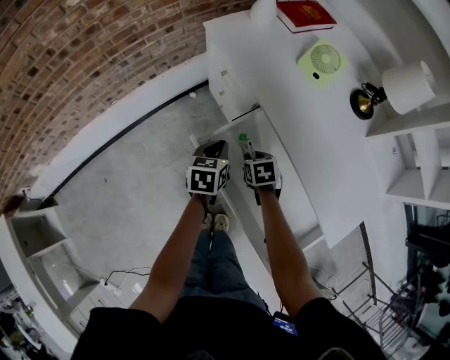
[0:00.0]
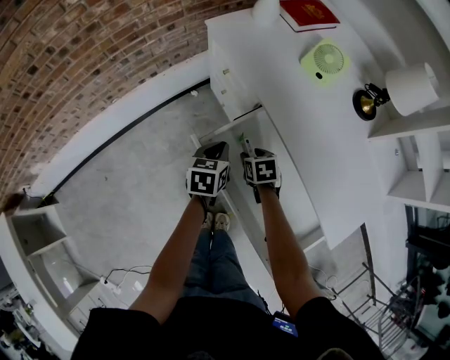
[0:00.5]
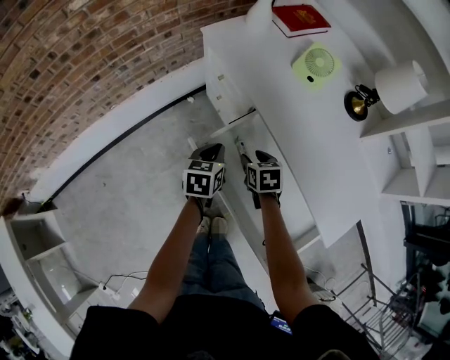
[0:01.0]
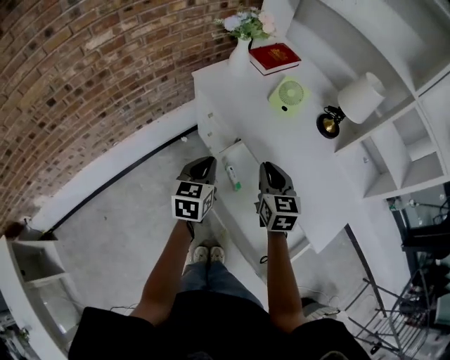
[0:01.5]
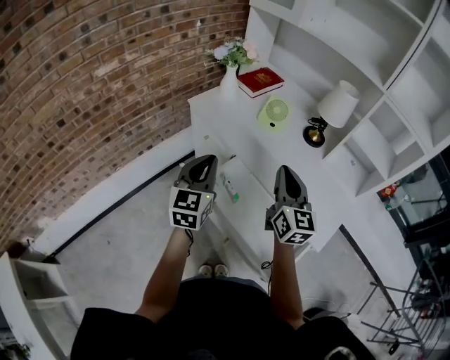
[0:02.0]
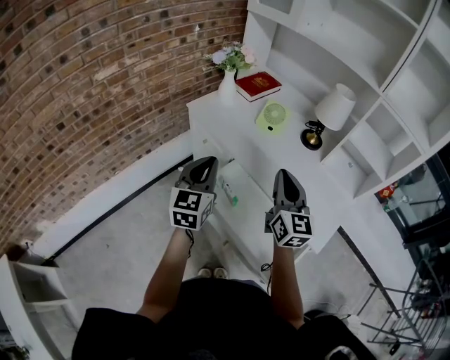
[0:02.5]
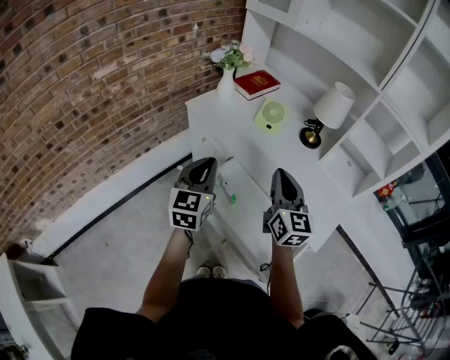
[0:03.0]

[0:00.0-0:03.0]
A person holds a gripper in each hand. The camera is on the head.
0:00.0 to 0:01.5: The right gripper goes some 25 cm upward, tilts its fingers some 40 degrees upward, and opens, then closes again, while the left gripper heads upward, covering approximately 15 cm.
0:01.5 to 0:03.0: The right gripper goes approximately 15 cm upward and backward, and changes its angle by some 20 degrees, while the left gripper is displaced upward by roughly 15 cm, and swivels some 20 degrees.

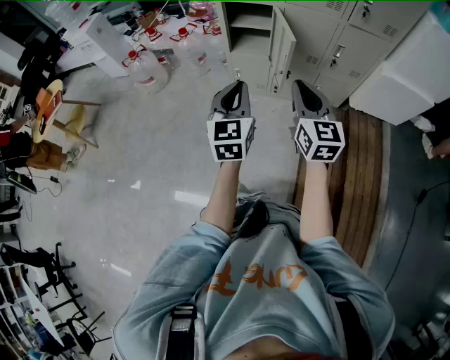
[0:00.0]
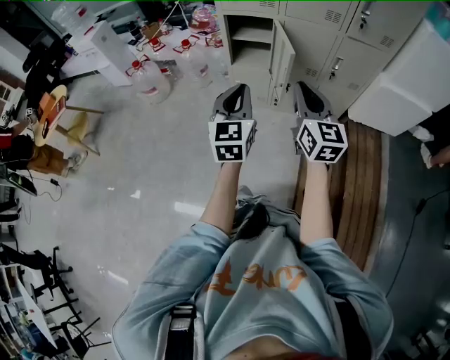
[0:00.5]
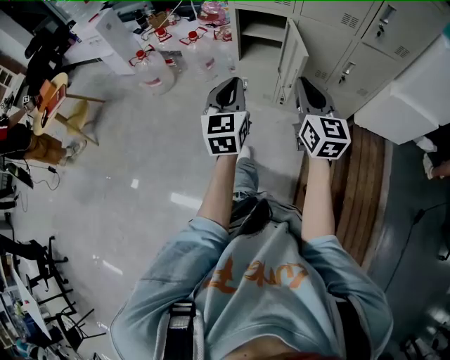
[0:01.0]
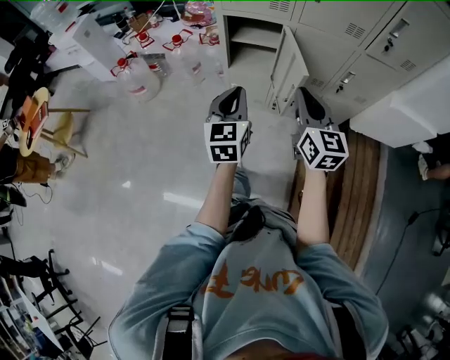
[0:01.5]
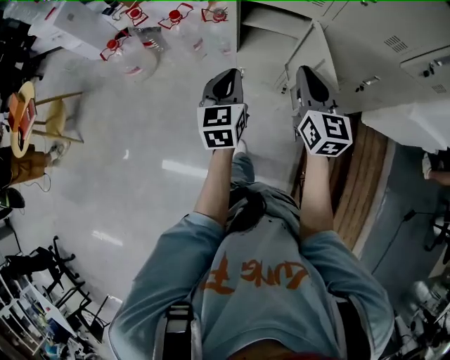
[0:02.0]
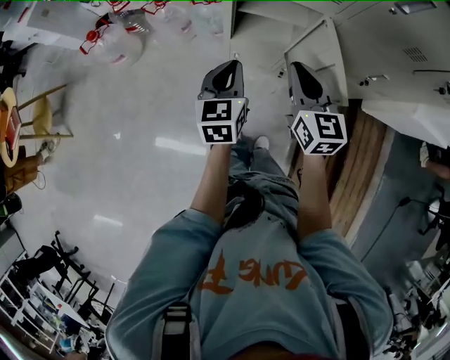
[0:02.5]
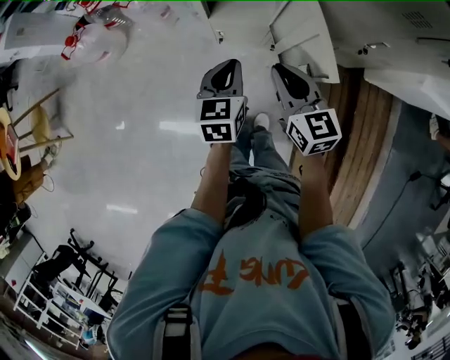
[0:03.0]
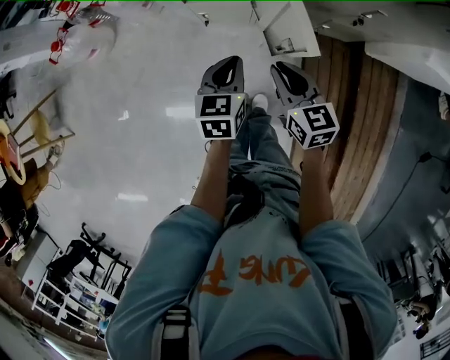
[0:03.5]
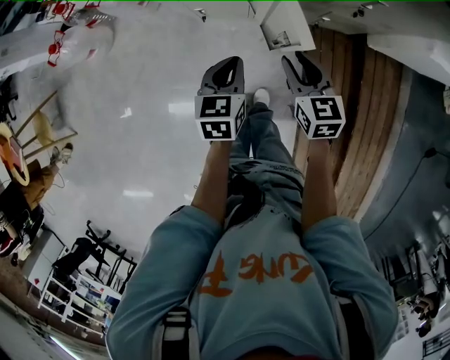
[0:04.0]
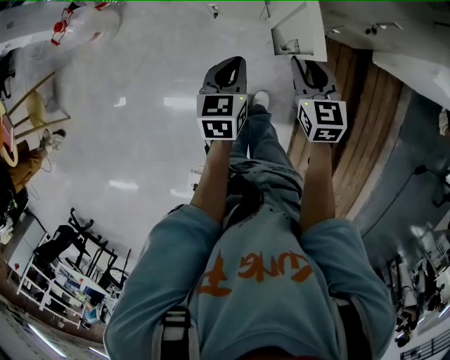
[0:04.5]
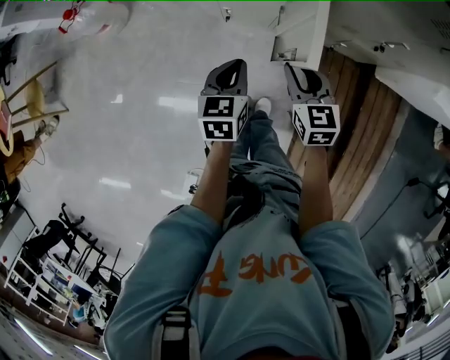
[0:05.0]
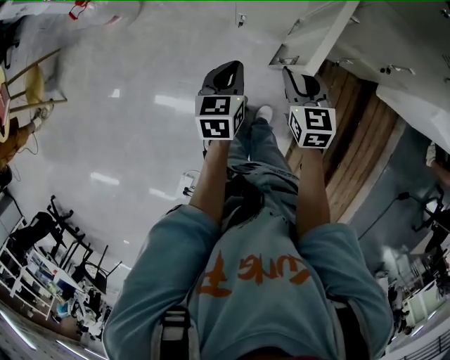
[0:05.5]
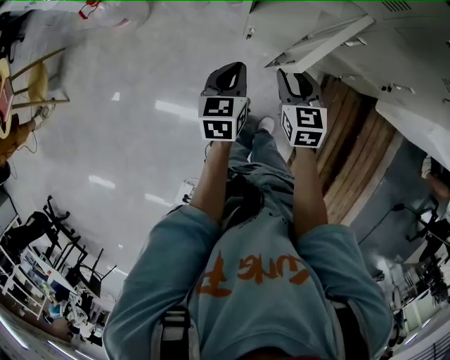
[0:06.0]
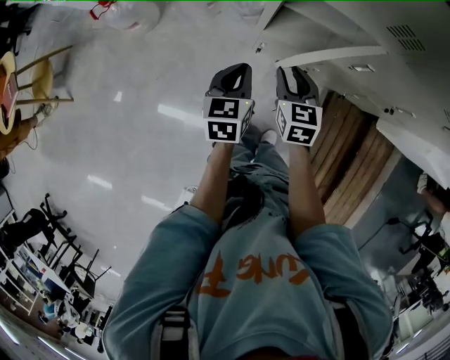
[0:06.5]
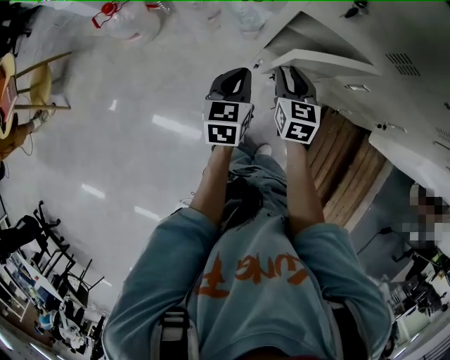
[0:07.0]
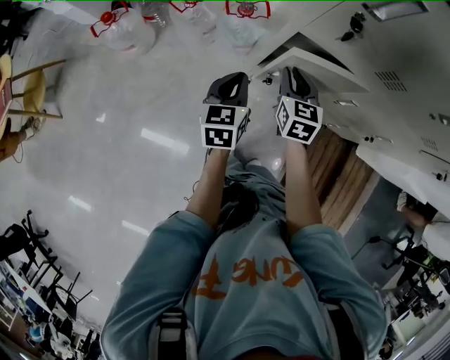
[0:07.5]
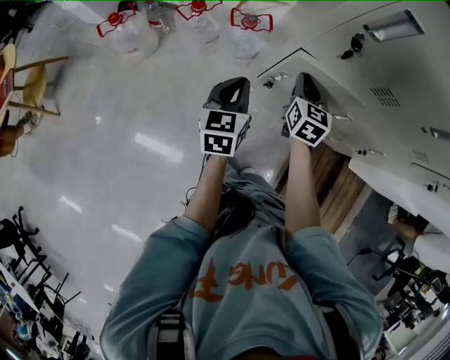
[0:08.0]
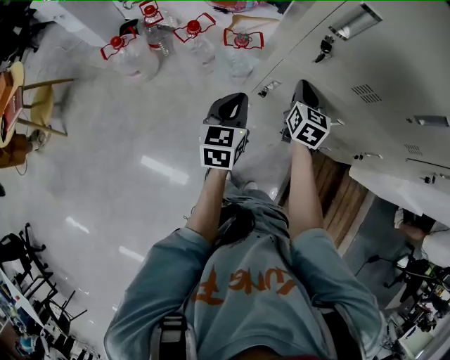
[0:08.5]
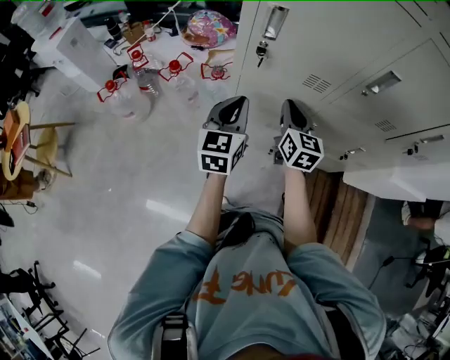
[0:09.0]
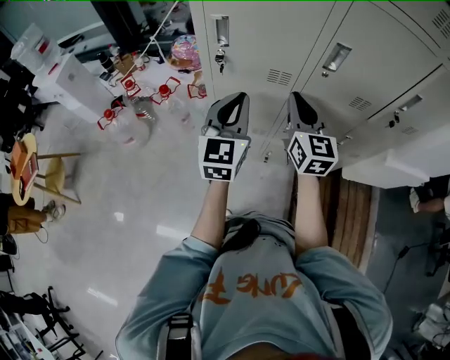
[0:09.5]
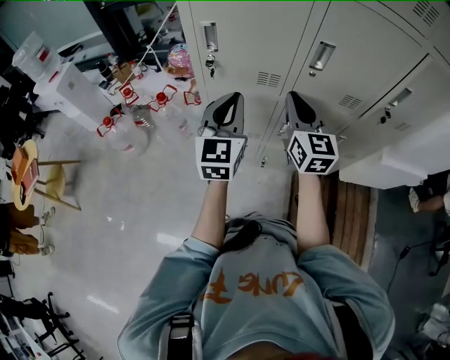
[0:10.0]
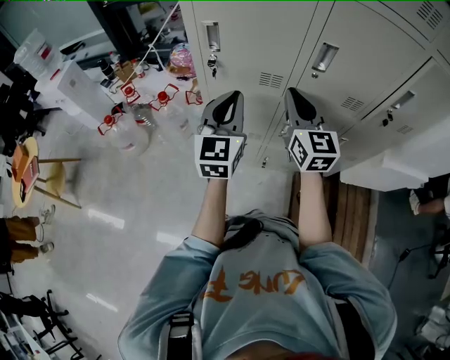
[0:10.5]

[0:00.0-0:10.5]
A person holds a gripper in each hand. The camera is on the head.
0:00.0 to 0:02.0: Both grippers travel together forward, roughly 30 cm.
0:02.0 to 0:04.0: The two grippers go about 25 cm downward and to the right. The left gripper changes its angle by roughly 30 degrees. The right gripper turns by roughly 20 degrees, and opens.
0:04.0 to 0:06.5: Both grippers move to the left and forward, roughly 25 cm.
0:06.5 to 0:08.5: The left gripper travels upward and forward by some 10 cm. Meanwhile the right gripper travels forward and upward by about 15 cm, and closes up.
0:08.5 to 0:10.5: The right gripper is displaced upward, to the right and backward by roughly 30 cm, and rotates about 30 degrees. The left gripper heads upward and to the right, covering about 30 cm, and changes its angle by roughly 30 degrees.

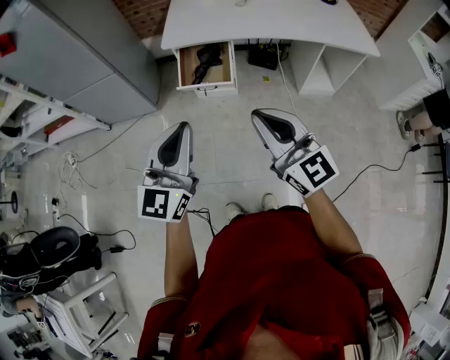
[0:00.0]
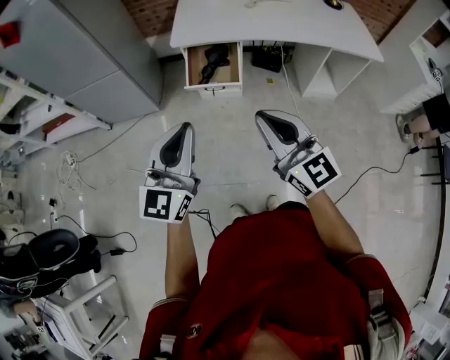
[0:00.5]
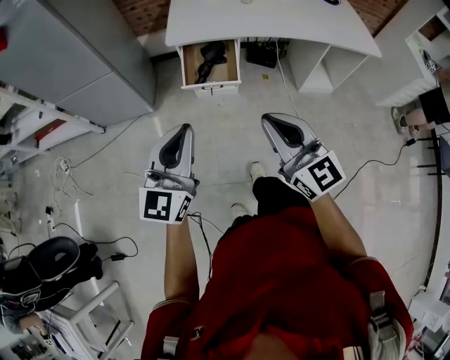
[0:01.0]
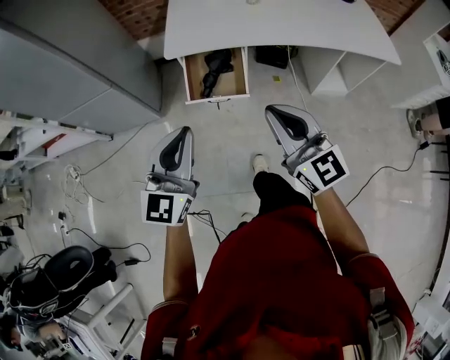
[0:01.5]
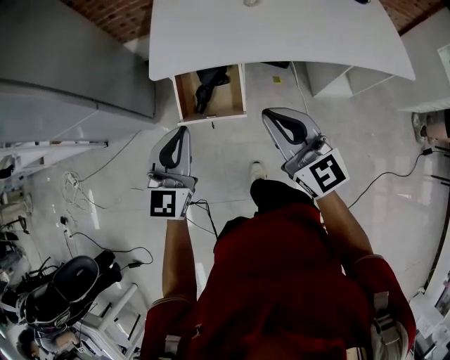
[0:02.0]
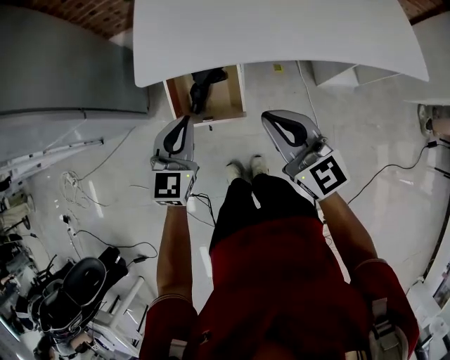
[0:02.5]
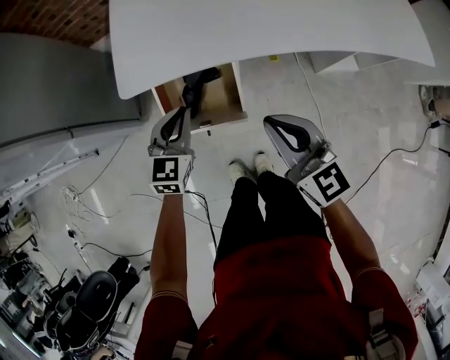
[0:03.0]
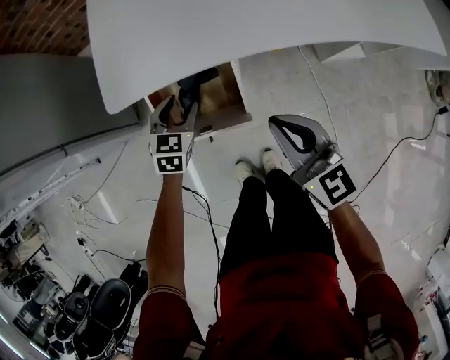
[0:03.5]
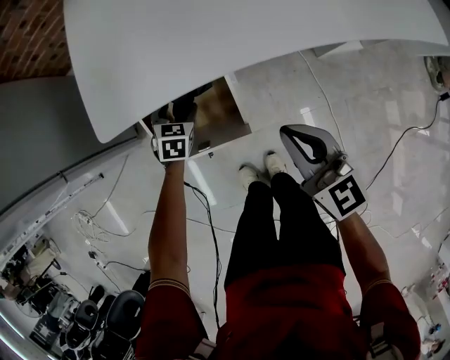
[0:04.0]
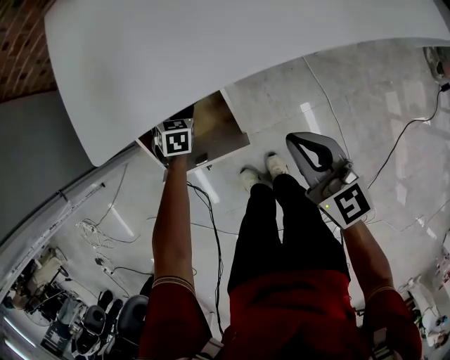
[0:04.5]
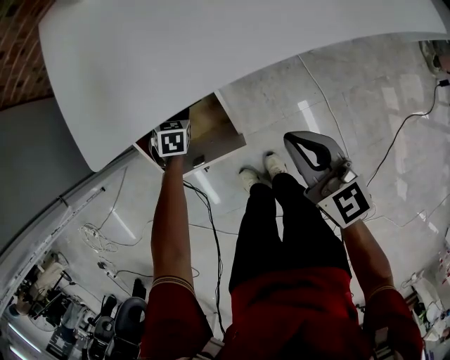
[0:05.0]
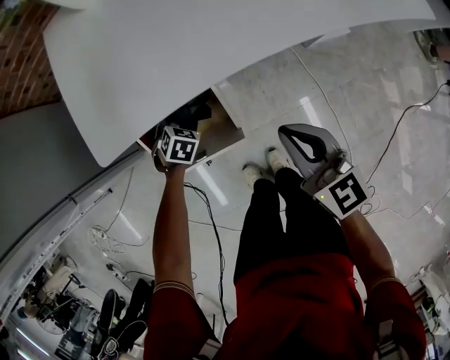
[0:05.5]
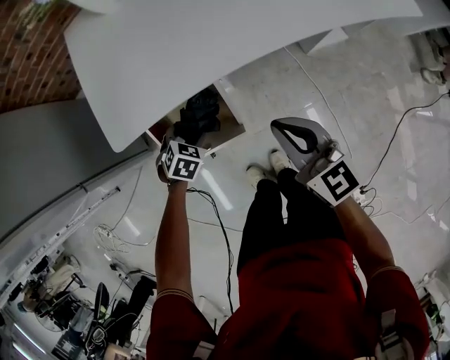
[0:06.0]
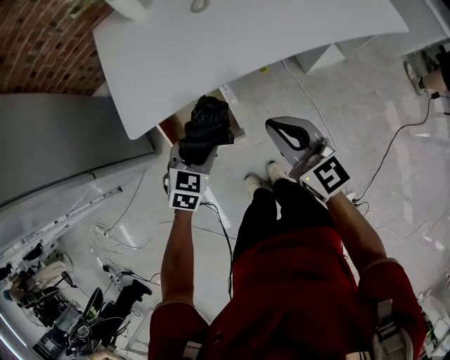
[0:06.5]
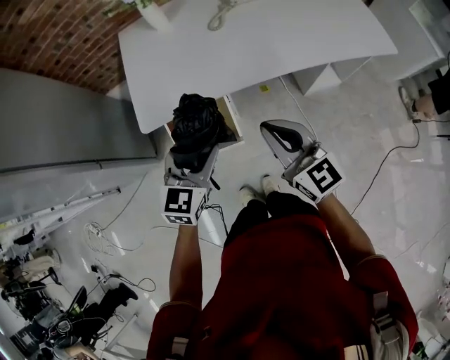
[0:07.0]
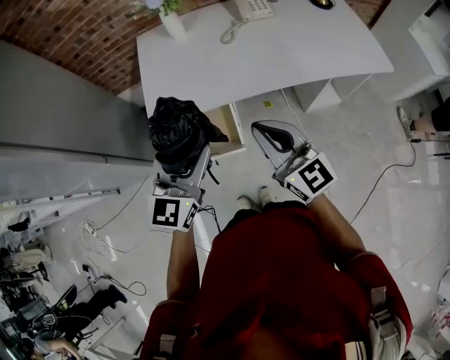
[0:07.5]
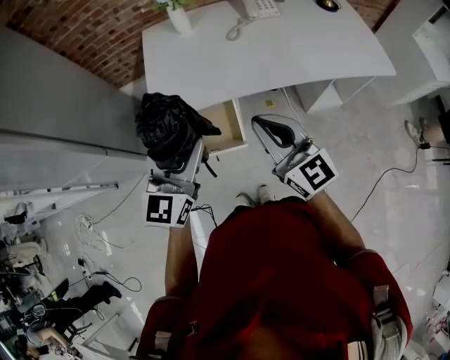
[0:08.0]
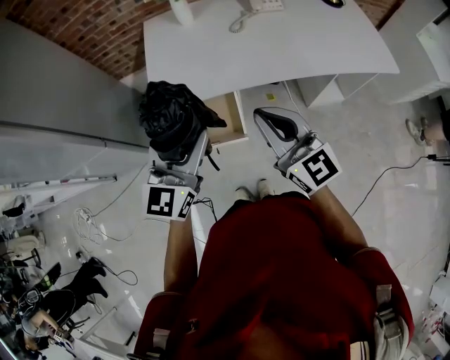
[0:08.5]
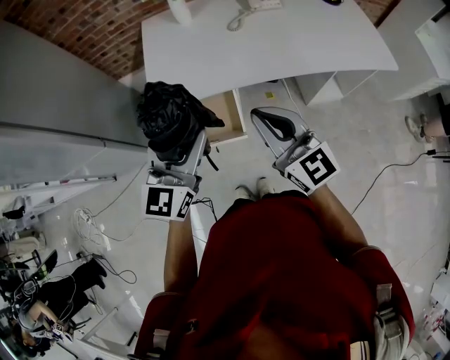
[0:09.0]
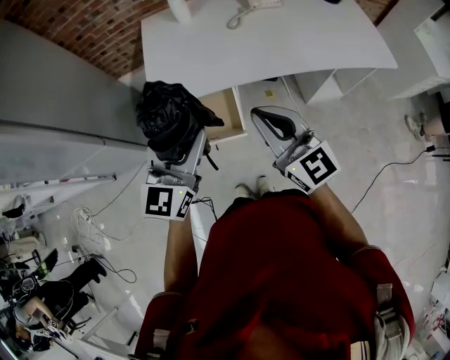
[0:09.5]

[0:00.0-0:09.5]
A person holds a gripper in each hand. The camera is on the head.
0:00.0 to 0:02.0: Both grippers travel together forward, approximately 35 cm.
0:02.0 to 0:04.0: The left gripper heads downward and forward, covering some 50 cm, tilts its fingers about 50 degrees downward, and opens up, while the right gripper goes about 25 cm downward and forward, and turns by roughly 20 degrees.
0:04.0 to 0:05.5: The left gripper changes place by roughly 5 cm, and rotates about 20 degrees.
0:05.5 to 0:07.5: The right gripper moves upward, about 25 cm, and swivels some 20 degrees. Meanwhile the left gripper moves upward, approximately 50 cm, and angles its fingers upward, by about 70 degrees.
0:07.5 to 0:09.5: The grippers stay close to where they were, moving slightly.

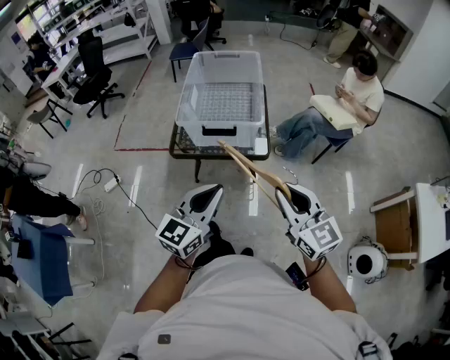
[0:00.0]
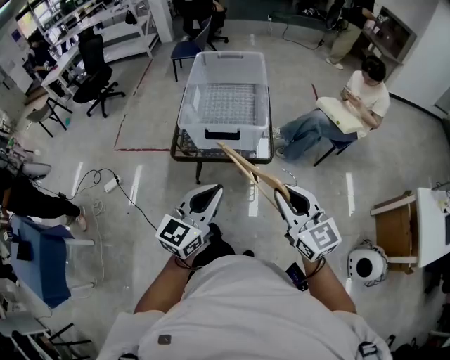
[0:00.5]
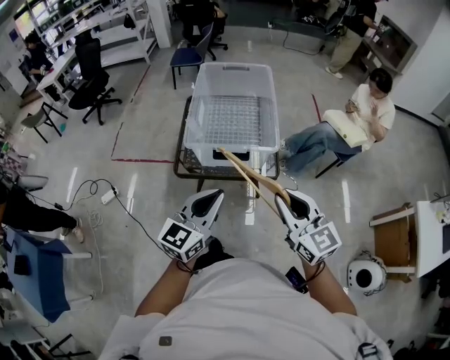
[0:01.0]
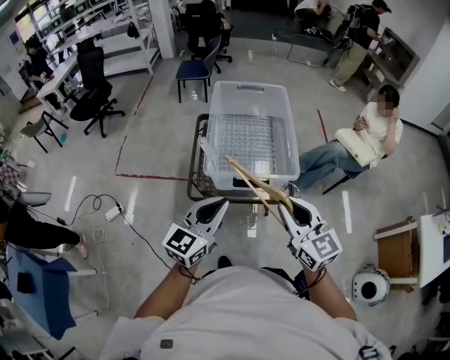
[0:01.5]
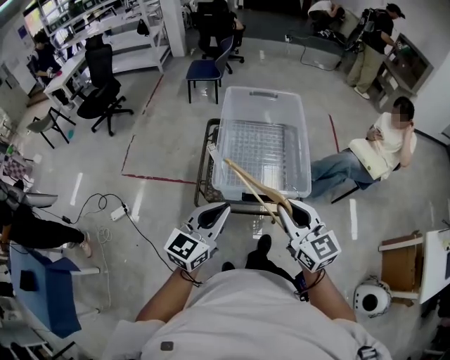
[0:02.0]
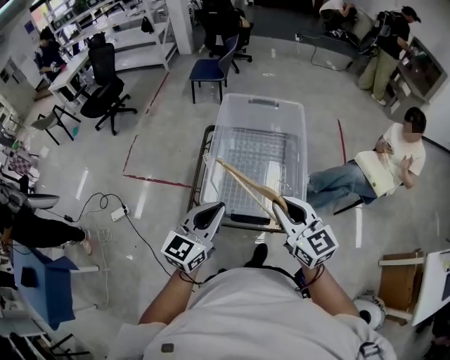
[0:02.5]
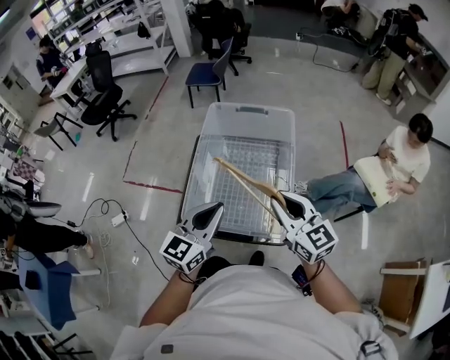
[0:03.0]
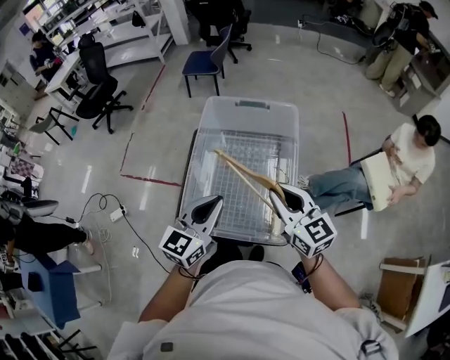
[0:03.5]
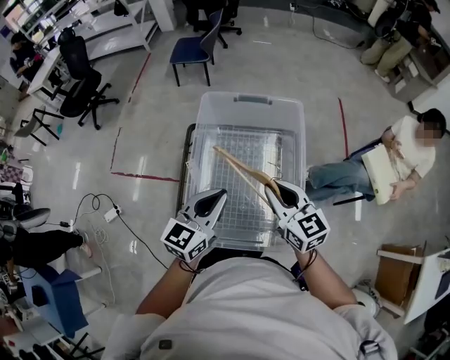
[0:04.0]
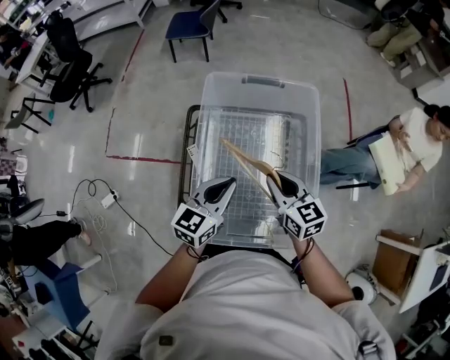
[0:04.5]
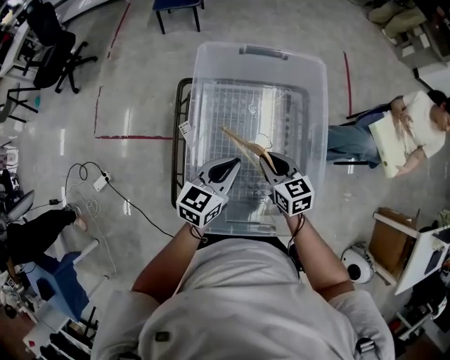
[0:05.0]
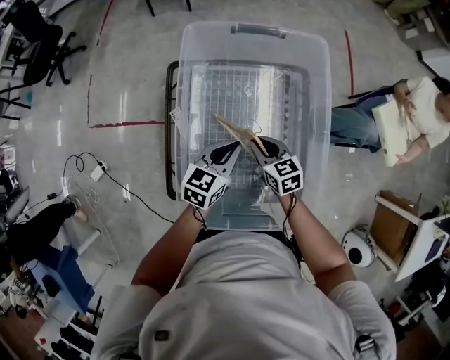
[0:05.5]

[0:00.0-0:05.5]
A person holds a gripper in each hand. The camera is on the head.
0:00.0 to 0:02.0: The two grippers go roughly 35 cm forward and to the left.
0:02.0 to 0:03.5: The grippers both shift forward and to the right by approximately 25 cm.
0:03.5 to 0:05.5: The right gripper moves downward, some 30 cm, and rotates some 30 degrees. Meanwhile the left gripper heads downward and forward, covering roughly 30 cm, and turns by about 30 degrees.
